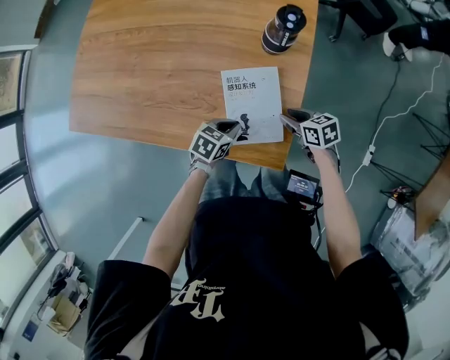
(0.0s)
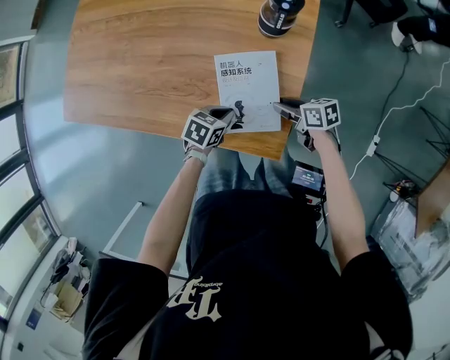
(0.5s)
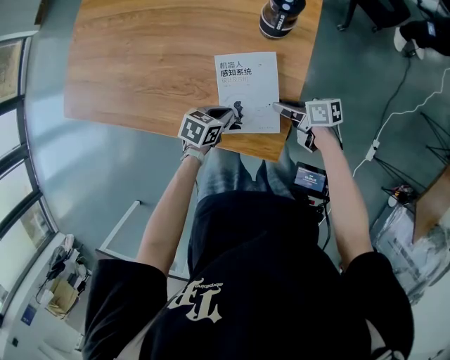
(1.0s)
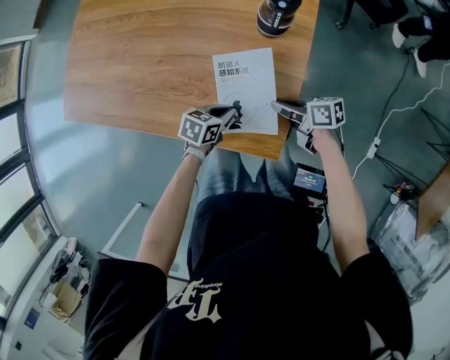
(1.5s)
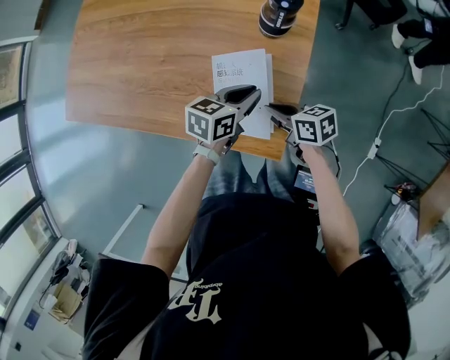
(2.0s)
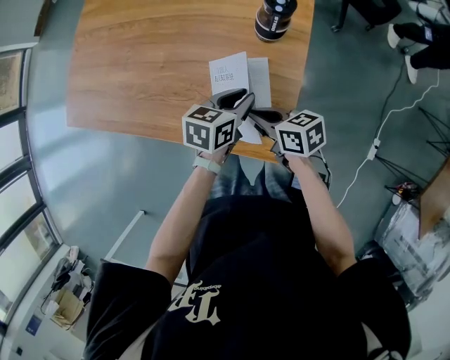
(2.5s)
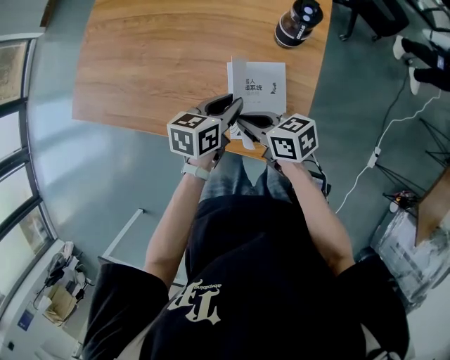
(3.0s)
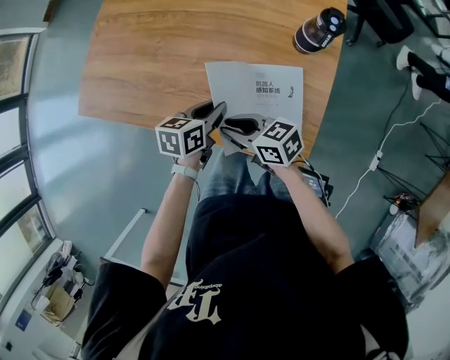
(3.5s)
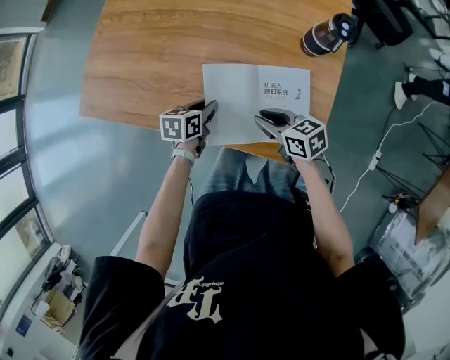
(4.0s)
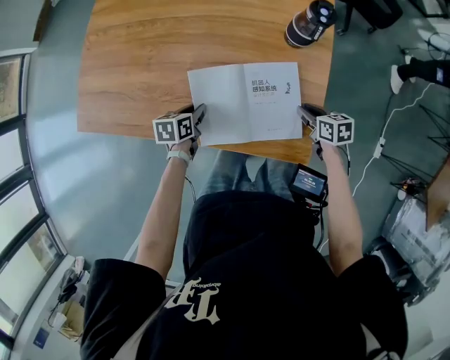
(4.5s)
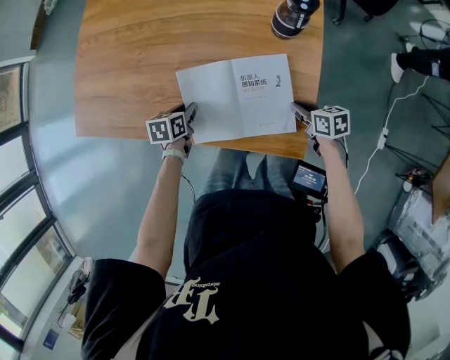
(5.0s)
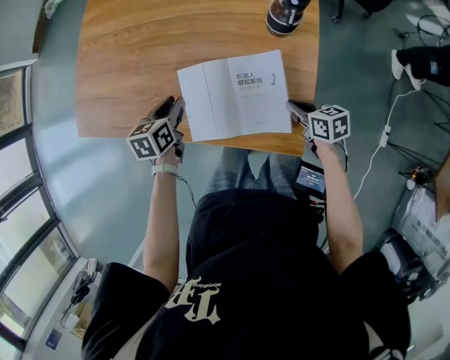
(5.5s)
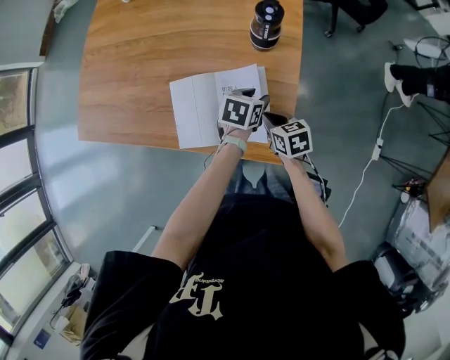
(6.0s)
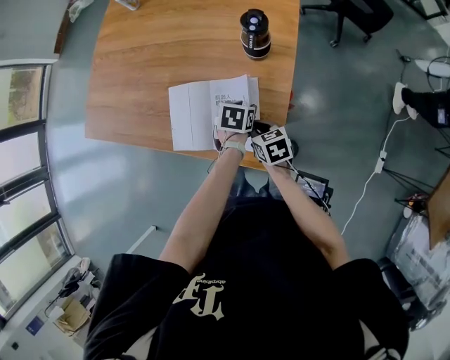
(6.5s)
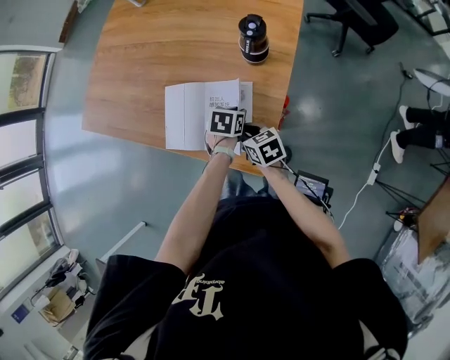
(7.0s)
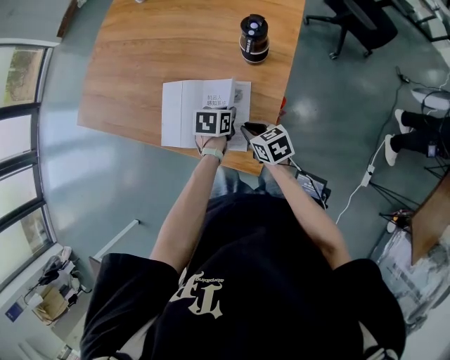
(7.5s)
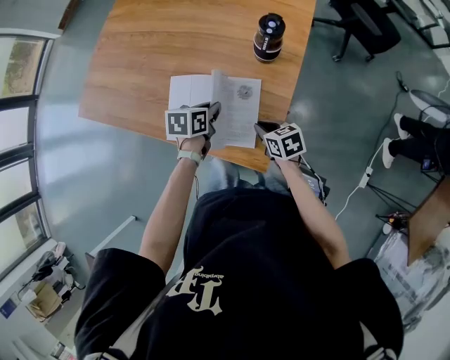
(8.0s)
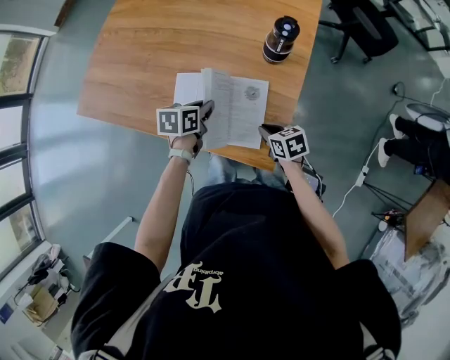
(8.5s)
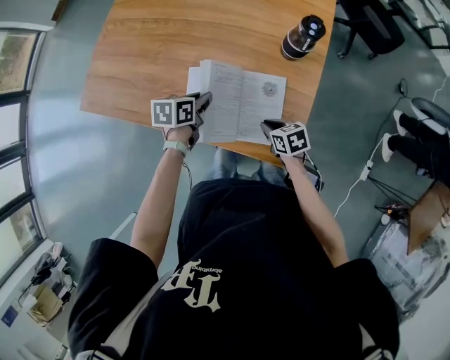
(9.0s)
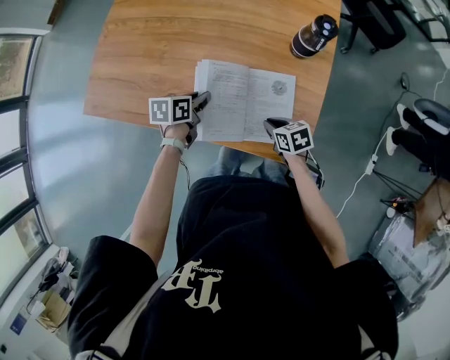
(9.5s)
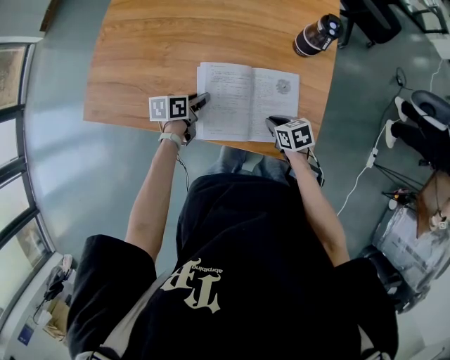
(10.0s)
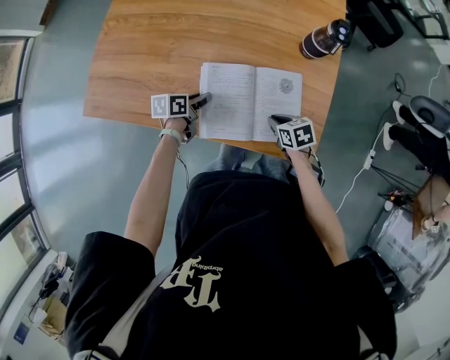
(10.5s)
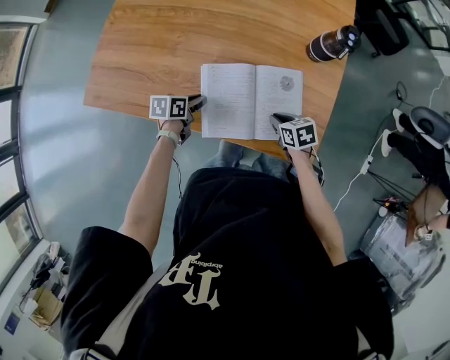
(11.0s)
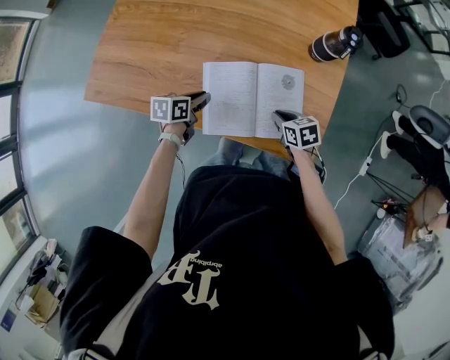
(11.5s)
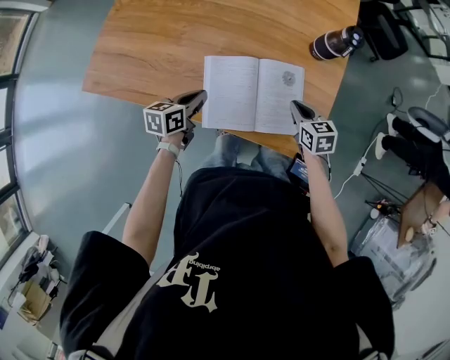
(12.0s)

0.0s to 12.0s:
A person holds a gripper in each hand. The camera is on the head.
0.0s to 2.0s: The right gripper shifts by about 5 cm, and closes its fingers; the left gripper shifts approximately 10 cm upward, and changes its angle by roughly 20 degrees.
2.0s to 4.0s: The left gripper travels to the left by about 25 cm, and turns by roughly 20 degrees, while the right gripper heads to the left, covering about 15 cm.
4.0s to 6.0s: The left gripper shifts approximately 30 cm to the right. The right gripper moves to the right, about 15 cm, and rotates some 20 degrees.
6.0s to 8.0s: The left gripper moves to the left, roughly 10 cm, rotates some 20 degrees, and closes up.
8.0s to 10.0s: The left gripper travels to the left by some 20 cm, while the right gripper is displaced to the left by some 15 cm.
10.0s to 12.0s: The right gripper moves upward, approximately 5 cm, while the left gripper shifts some 5 cm backward.

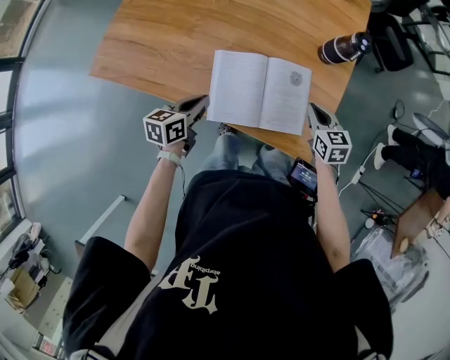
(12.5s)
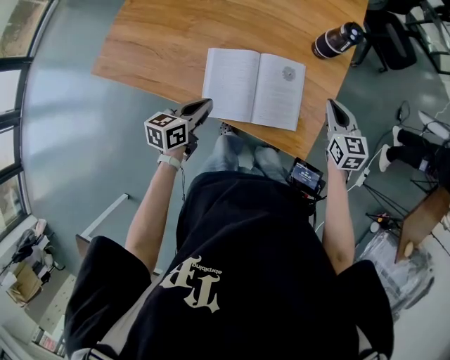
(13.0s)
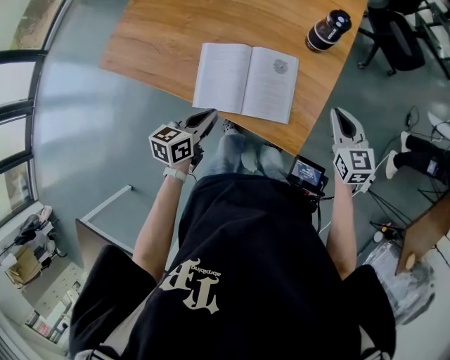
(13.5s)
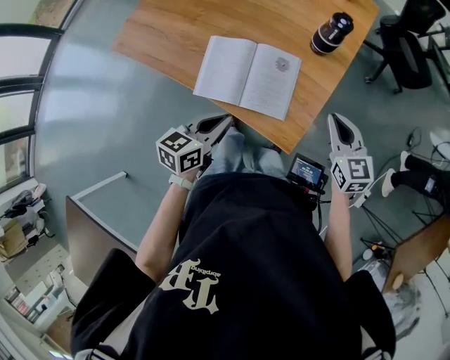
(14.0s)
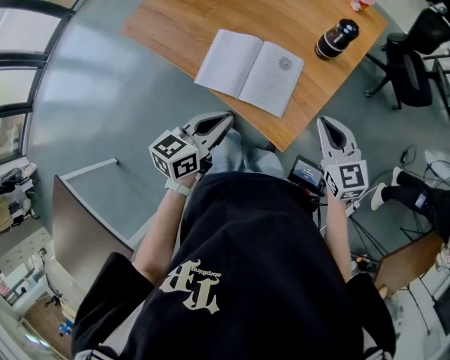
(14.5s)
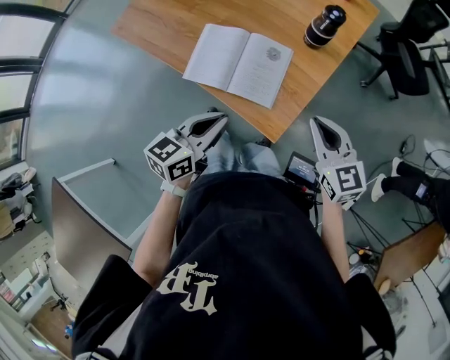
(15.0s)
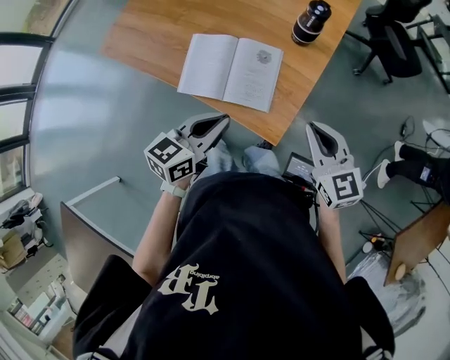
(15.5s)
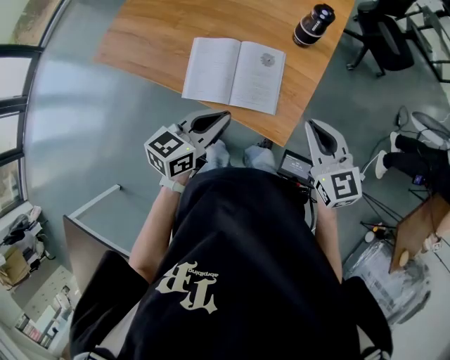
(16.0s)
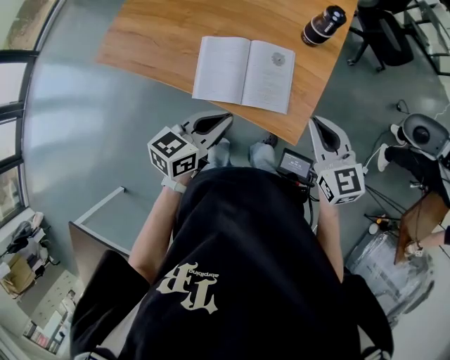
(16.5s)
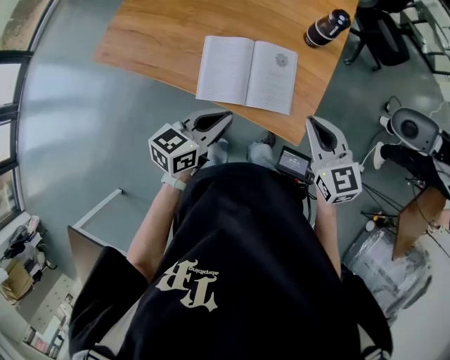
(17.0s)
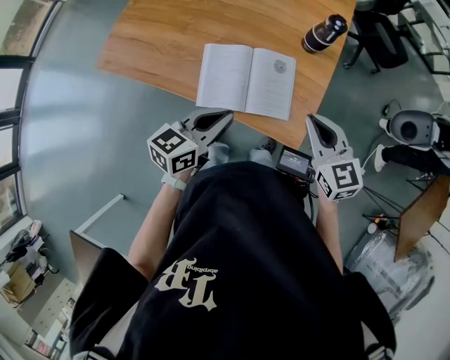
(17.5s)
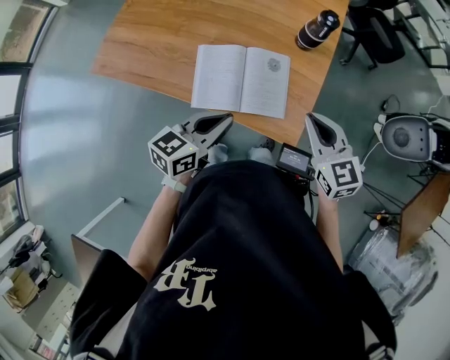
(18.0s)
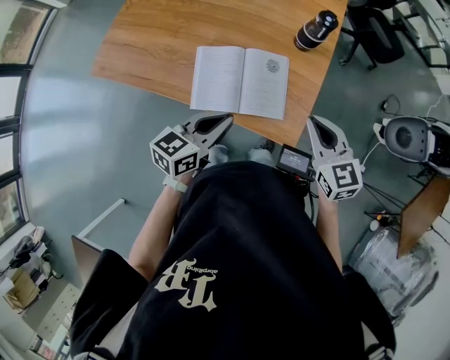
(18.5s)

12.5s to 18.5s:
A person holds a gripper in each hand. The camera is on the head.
12.5s to 14.5s: The left gripper is displaced to the right, upward and backward by about 30 cm, while the right gripper heads upward, to the right and backward, covering roughly 20 cm, and rotates roughly 30 degrees.
14.5s to 16.5s: The grippers both shift to the left by approximately 5 cm.
16.5s to 18.5s: The grippers stay close to where they were, moving slightly.

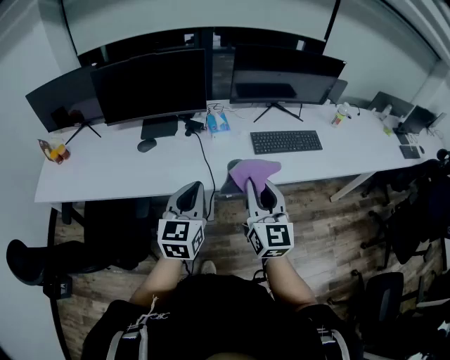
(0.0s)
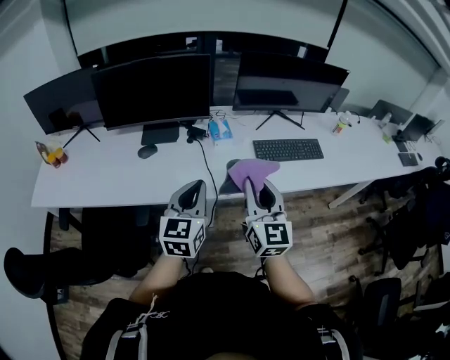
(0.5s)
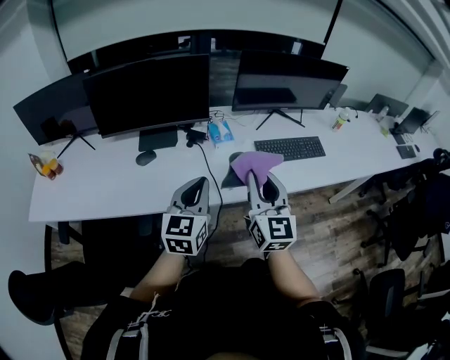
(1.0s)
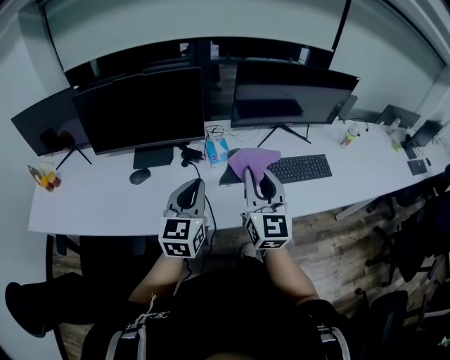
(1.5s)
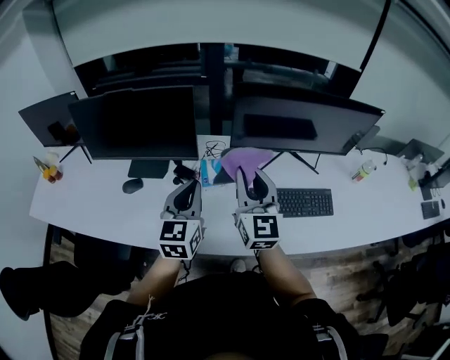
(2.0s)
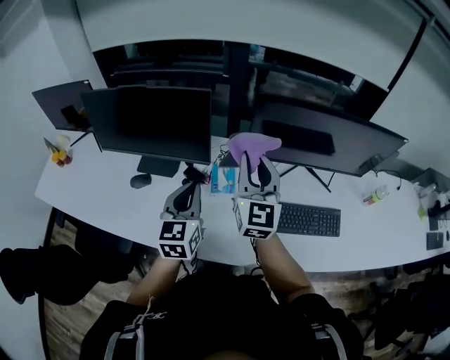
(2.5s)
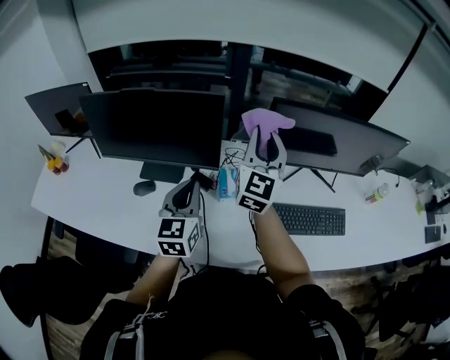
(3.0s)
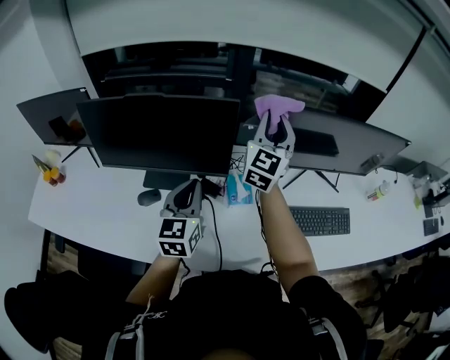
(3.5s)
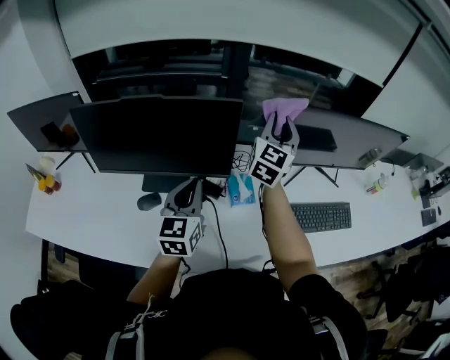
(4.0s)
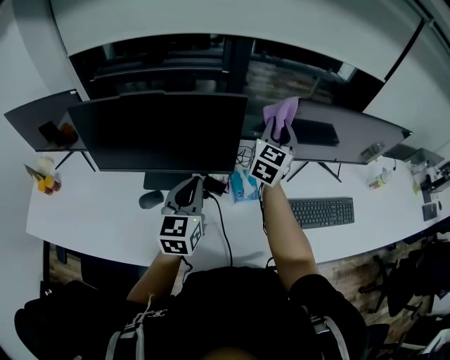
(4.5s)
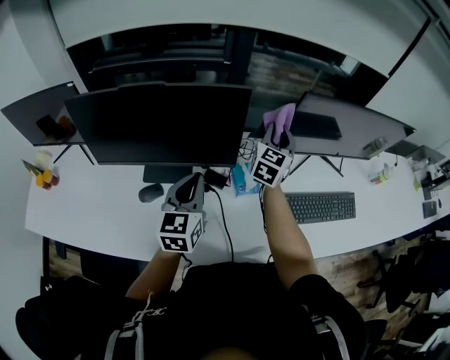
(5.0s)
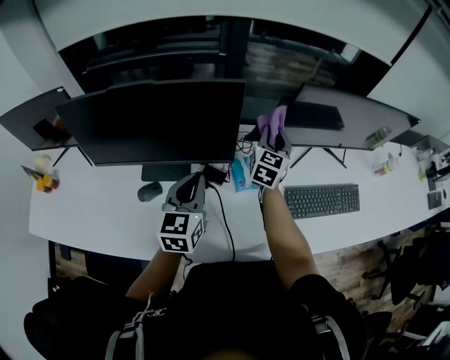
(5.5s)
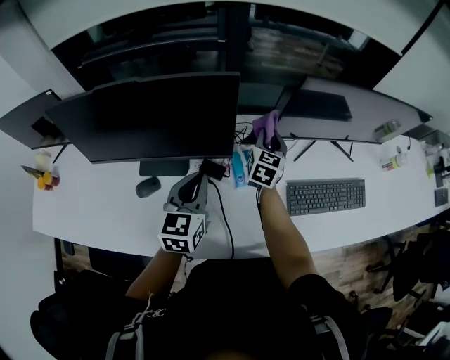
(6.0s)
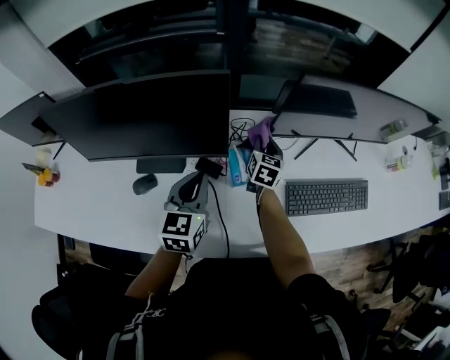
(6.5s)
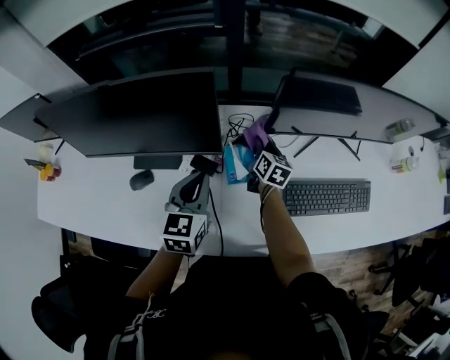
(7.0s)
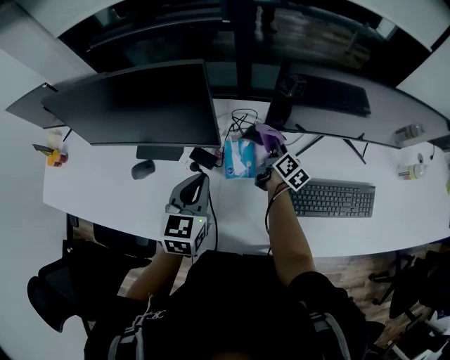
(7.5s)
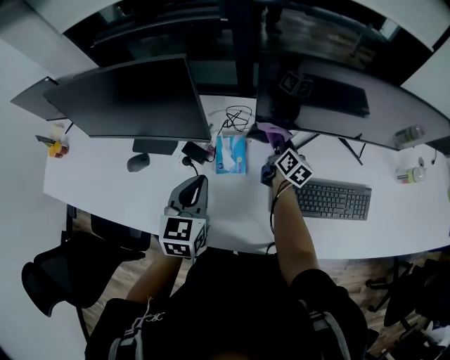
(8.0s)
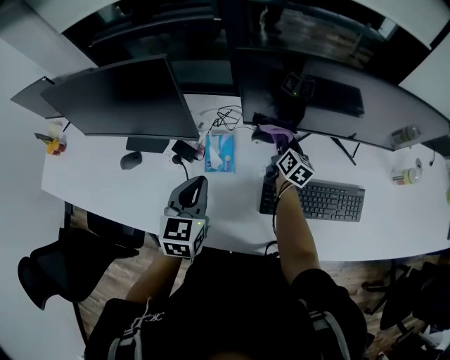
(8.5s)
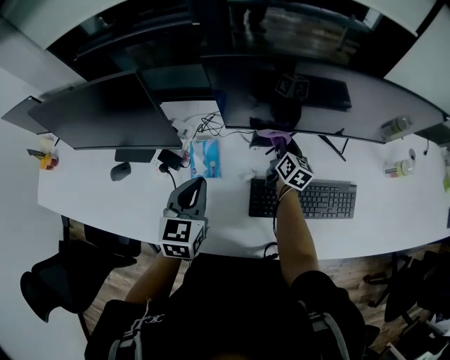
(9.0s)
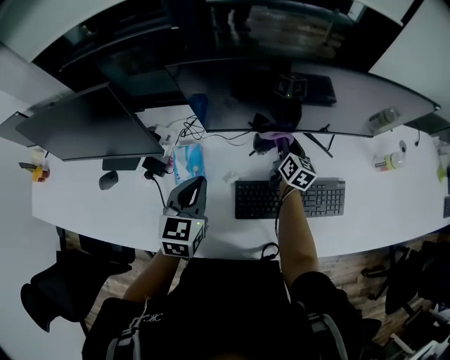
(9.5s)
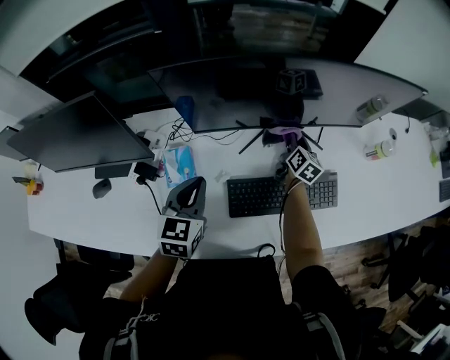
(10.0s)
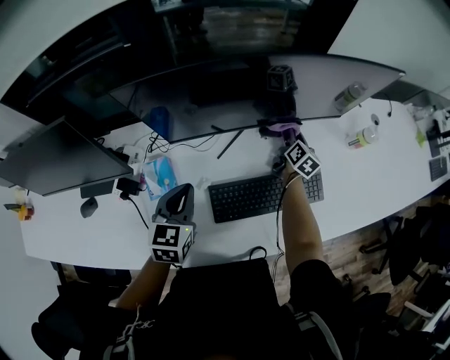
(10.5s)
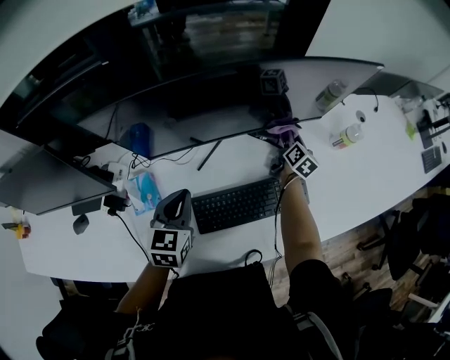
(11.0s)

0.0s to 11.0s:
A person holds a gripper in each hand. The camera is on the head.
0.0s to 2.0s: Both grippers move forward, some 35 cm.
2.0s to 3.5s: The right gripper is displaced forward and to the left by some 25 cm, and rotates about 30 degrees, while the left gripper is displaced to the left and forward by roughly 20 cm.
3.5s to 5.5s: The right gripper shifts roughly 20 cm downward, and turns by about 20 degrees, while the left gripper ends up about 5 cm from where it was.
5.5s to 7.5s: The left gripper heads to the right and downward, covering about 10 cm, while the right gripper moves downward and to the right, roughly 20 cm, and rotates around the line of its fingers by some 50 degrees, clockwise from behind.
7.5s to 9.0s: Both grippers move to the right, about 15 cm. The right gripper turns by about 20 degrees.
9.0s to 11.0s: The left gripper moves to the right and forward, approximately 15 cm. Meanwhile the right gripper is displaced to the right by approximately 30 cm, and turns by approximately 30 degrees.
